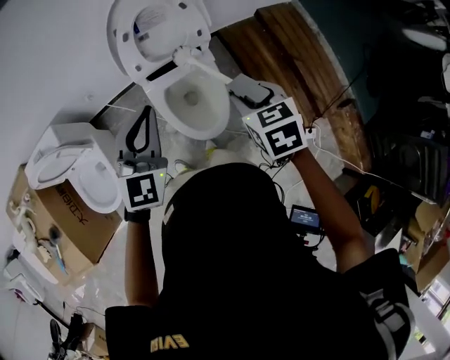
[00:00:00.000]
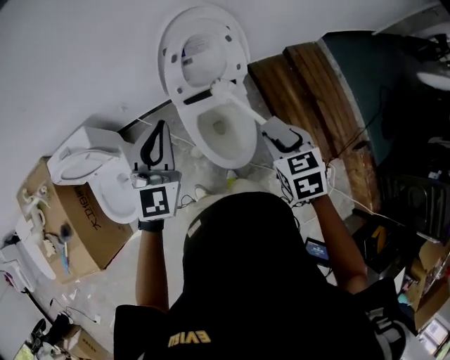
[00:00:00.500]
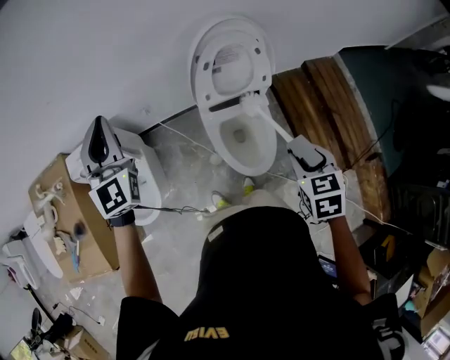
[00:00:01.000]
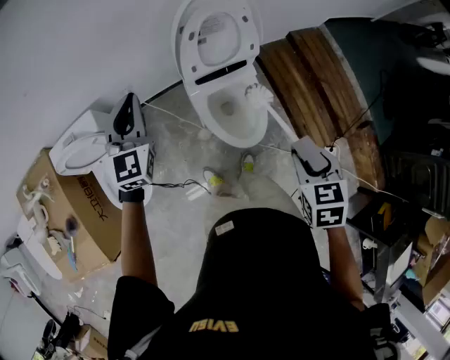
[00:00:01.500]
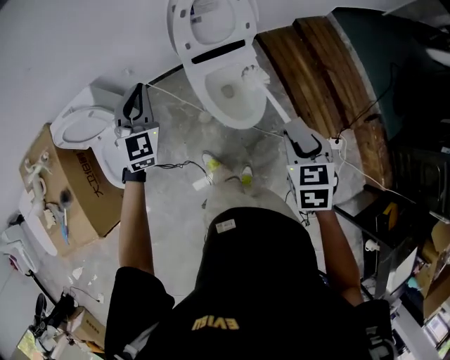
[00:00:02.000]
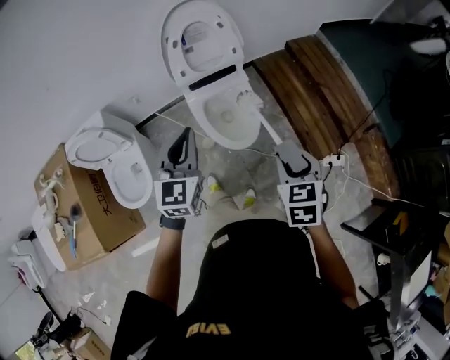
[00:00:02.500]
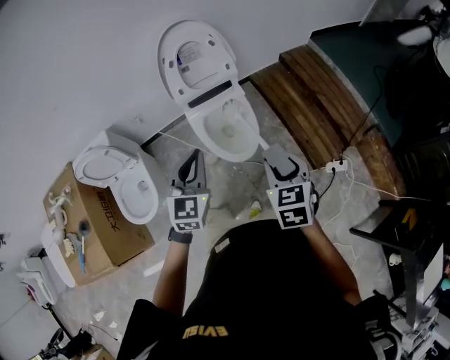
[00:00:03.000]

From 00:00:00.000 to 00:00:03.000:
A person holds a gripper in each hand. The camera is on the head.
From 00:00:00.000 to 00:00:01.500: The right gripper heads backward and to the left, covering approximately 15 cm; the left gripper travels to the left by roughly 25 cm.
From 00:00:01.500 to 00:00:03.000: The left gripper goes about 35 cm to the right and backward; the right gripper shifts some 15 cm backward and to the right.

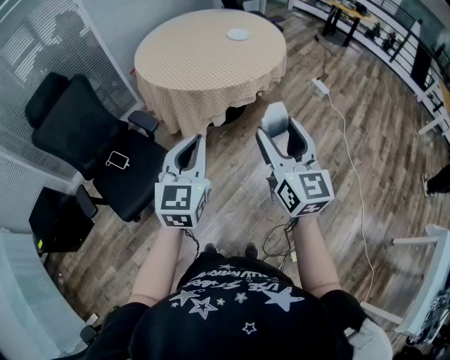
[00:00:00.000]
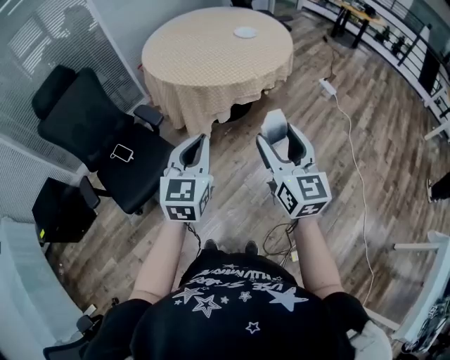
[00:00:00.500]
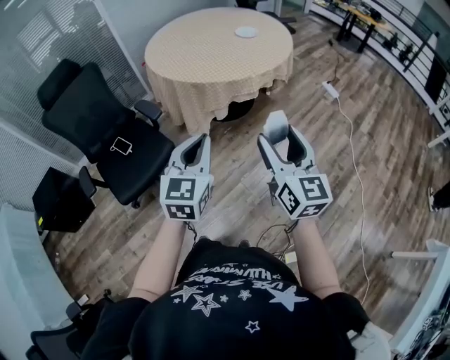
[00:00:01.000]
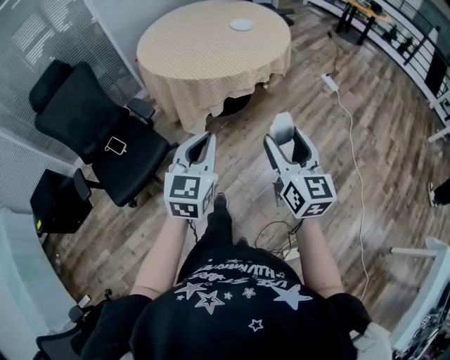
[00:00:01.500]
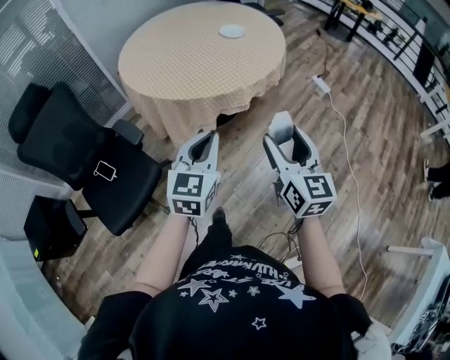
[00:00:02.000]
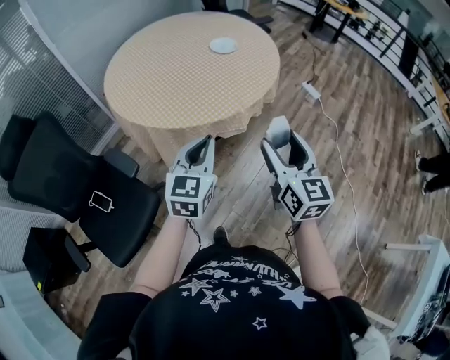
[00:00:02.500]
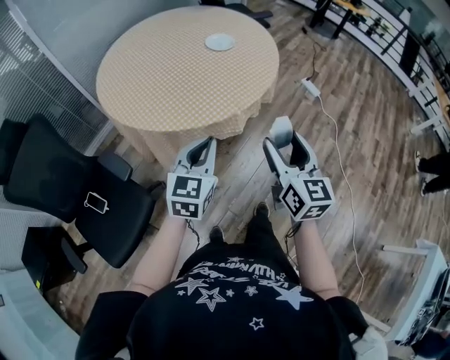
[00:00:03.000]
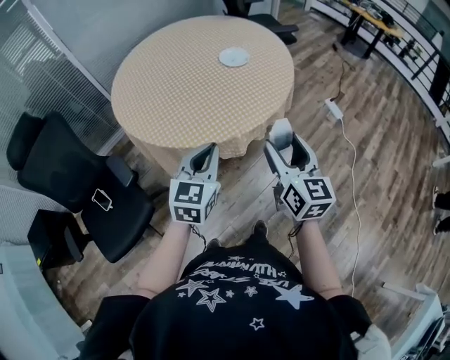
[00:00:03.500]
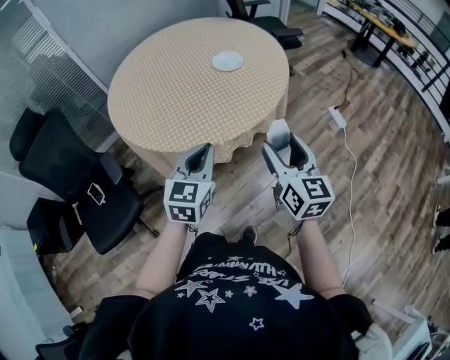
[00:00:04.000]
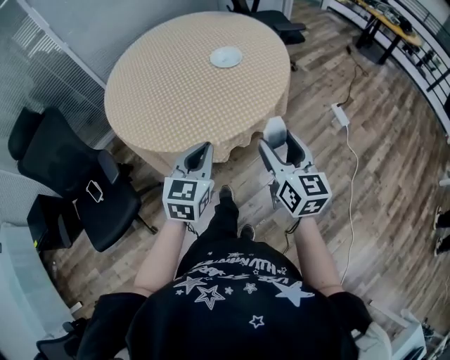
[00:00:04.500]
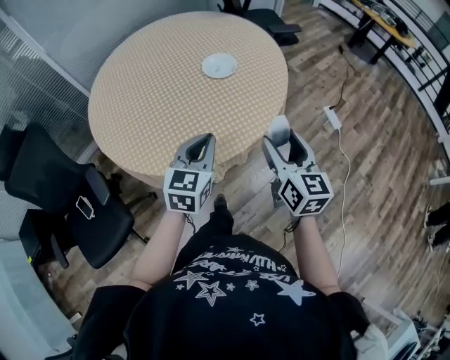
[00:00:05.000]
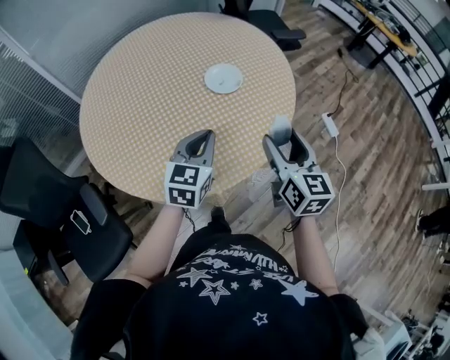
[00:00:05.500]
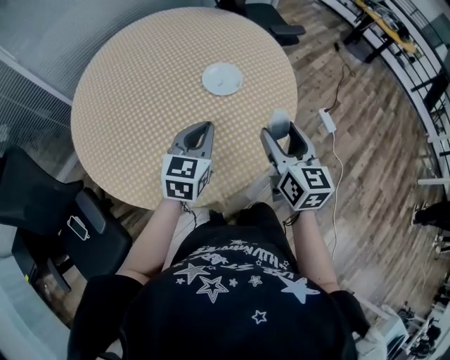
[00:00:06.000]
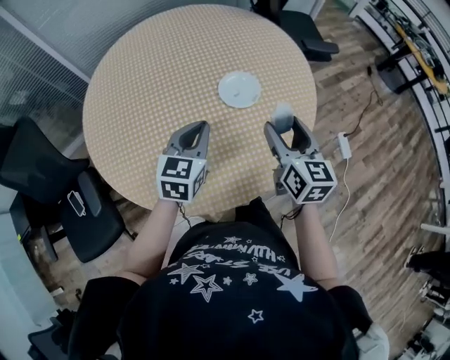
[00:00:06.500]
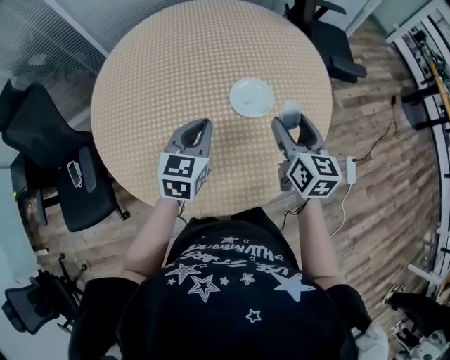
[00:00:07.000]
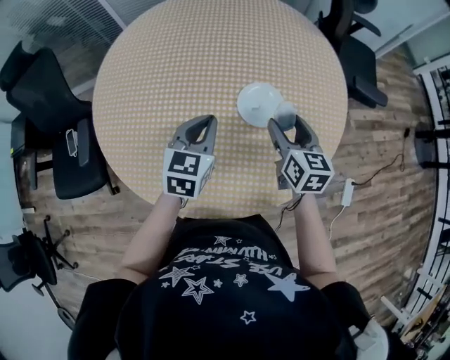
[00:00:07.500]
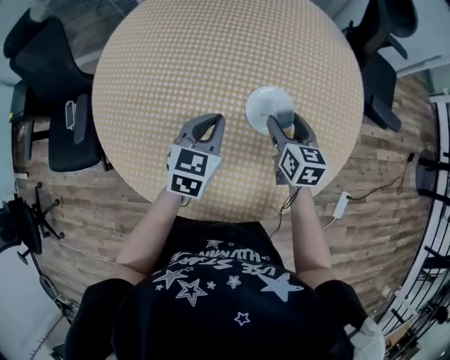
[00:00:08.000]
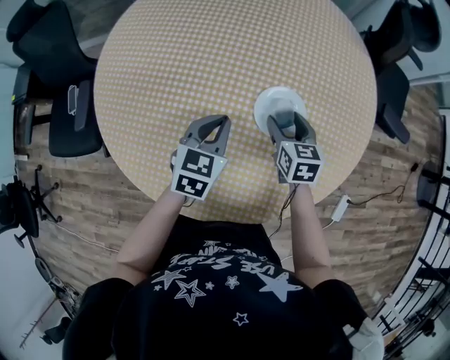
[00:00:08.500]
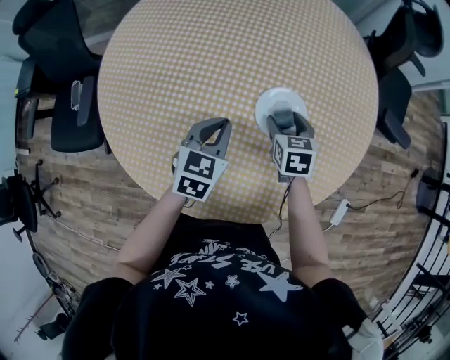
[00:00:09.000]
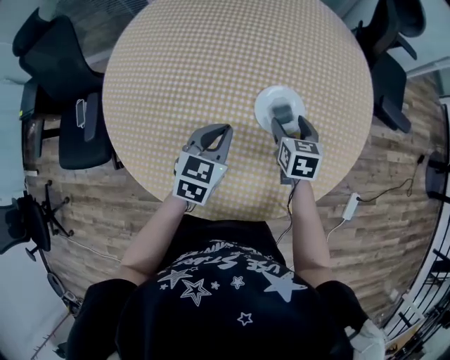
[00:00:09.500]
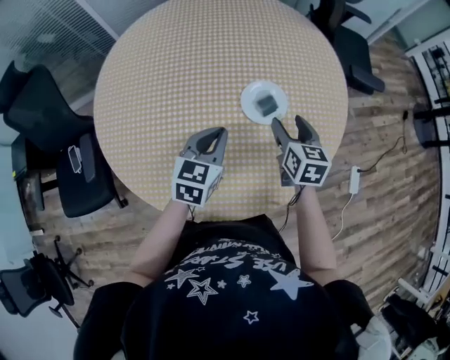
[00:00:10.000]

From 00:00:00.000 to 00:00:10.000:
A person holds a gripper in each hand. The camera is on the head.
From 00:00:00.000 to 00:00:02.000: The left gripper travels forward, to the right and downward by roughly 20 cm; the right gripper travels forward, downward and to the right by about 15 cm.
From 00:00:02.000 to 00:00:04.000: Both grippers move forward and to the right, approximately 30 cm.
From 00:00:04.000 to 00:00:06.000: The grippers both shift forward by approximately 30 cm.
From 00:00:06.000 to 00:00:08.000: The right gripper ends up approximately 30 cm from where it was, and changes its angle by roughly 40 degrees. The left gripper moves roughly 15 cm, and changes its angle by some 40 degrees.
From 00:00:08.000 to 00:00:10.000: The right gripper is displaced backward by approximately 5 cm.

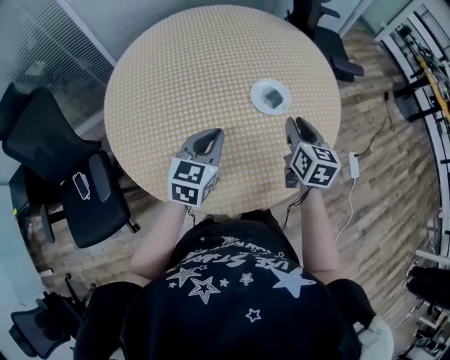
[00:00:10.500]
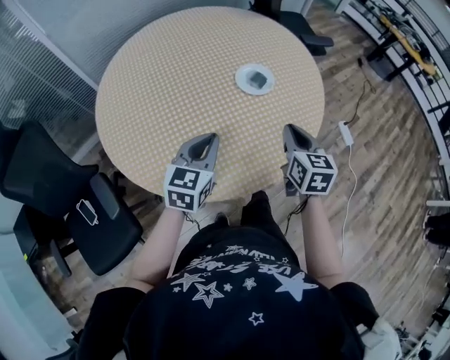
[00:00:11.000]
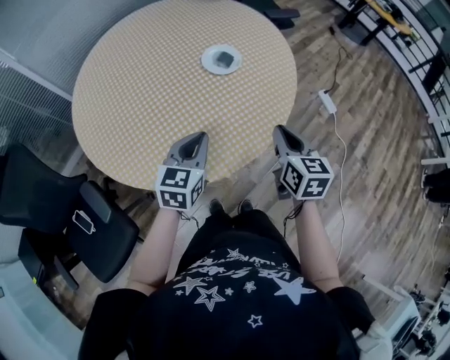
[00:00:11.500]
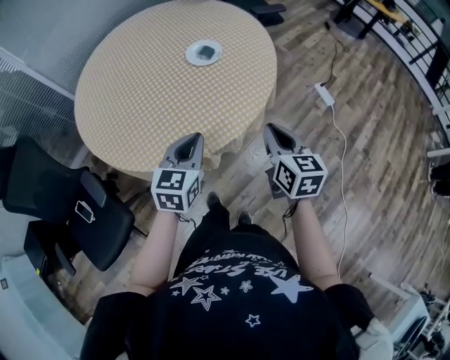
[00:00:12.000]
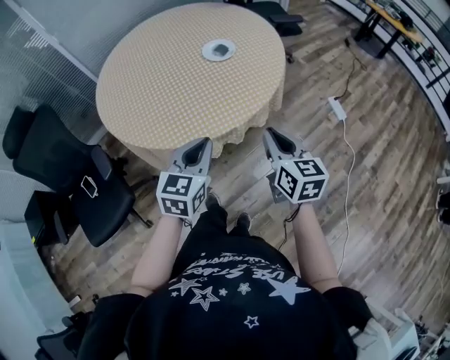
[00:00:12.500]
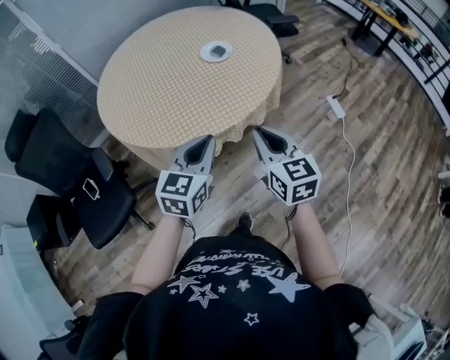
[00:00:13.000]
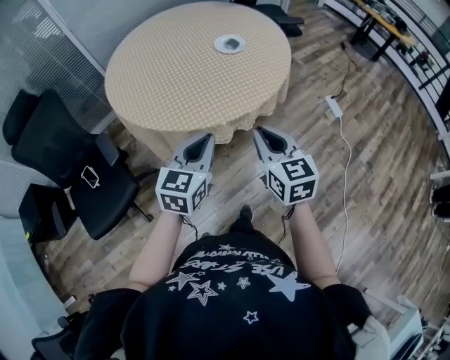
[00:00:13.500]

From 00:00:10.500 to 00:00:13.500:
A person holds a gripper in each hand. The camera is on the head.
From 00:00:10.500 to 00:00:12.000: The left gripper goes roughly 20 cm backward and to the right; the right gripper heads backward, covering some 30 cm.
From 00:00:12.000 to 00:00:13.500: The right gripper travels backward and to the left by roughly 15 cm. The left gripper travels backward by roughly 15 cm.

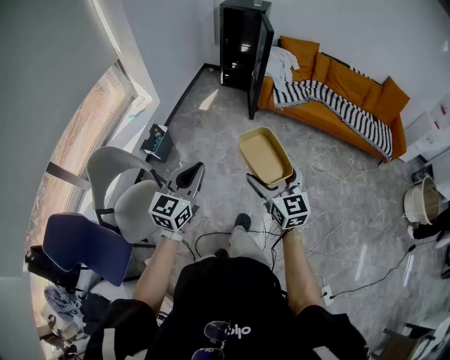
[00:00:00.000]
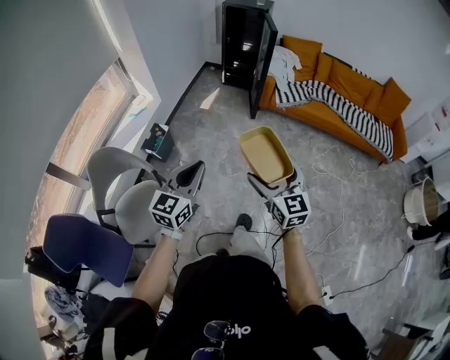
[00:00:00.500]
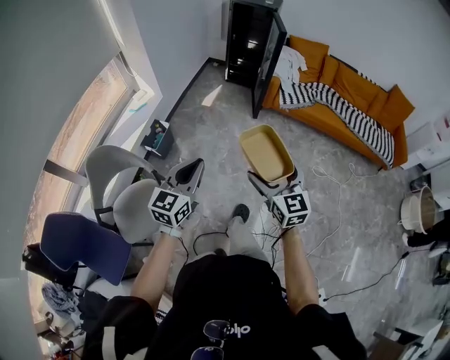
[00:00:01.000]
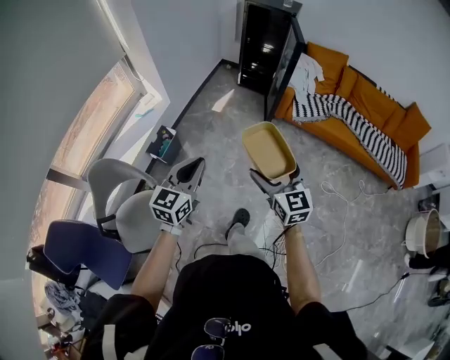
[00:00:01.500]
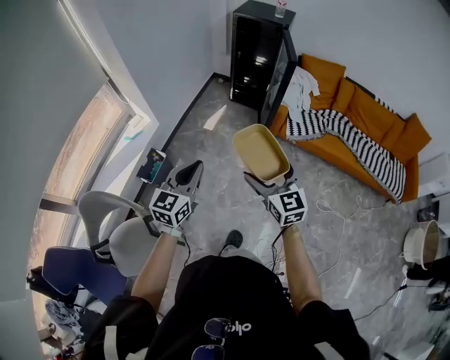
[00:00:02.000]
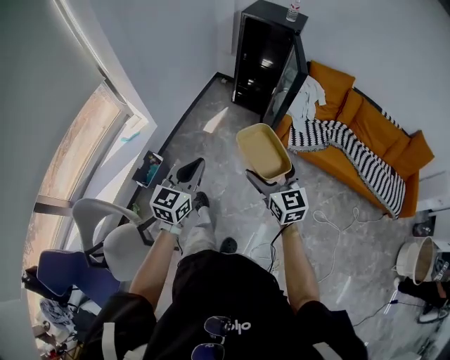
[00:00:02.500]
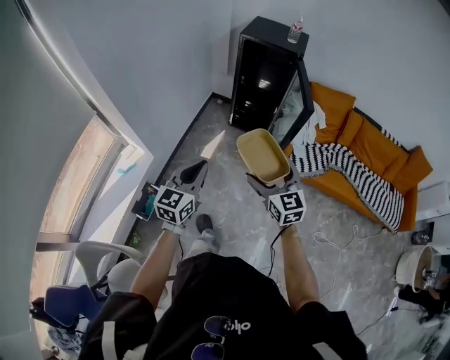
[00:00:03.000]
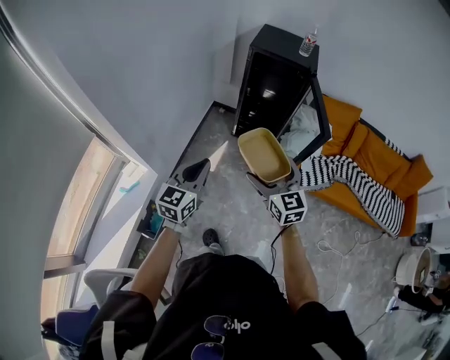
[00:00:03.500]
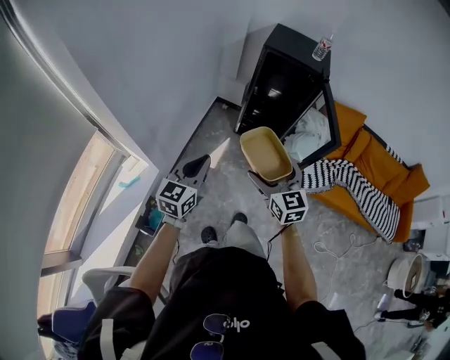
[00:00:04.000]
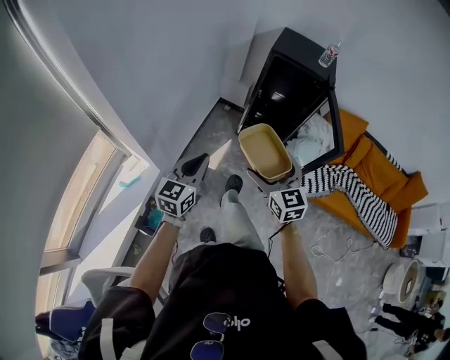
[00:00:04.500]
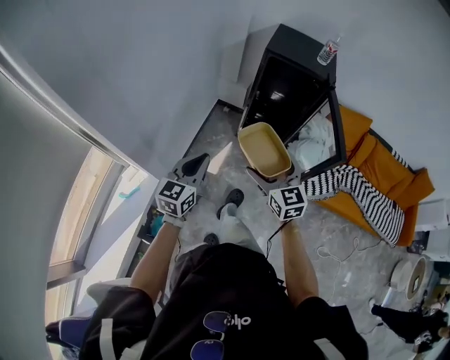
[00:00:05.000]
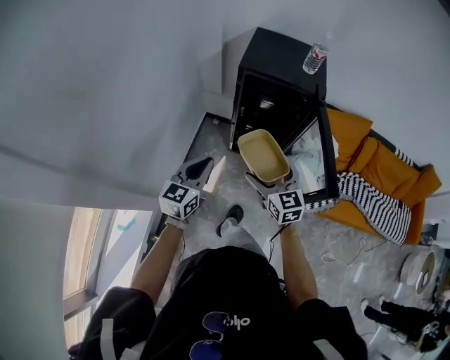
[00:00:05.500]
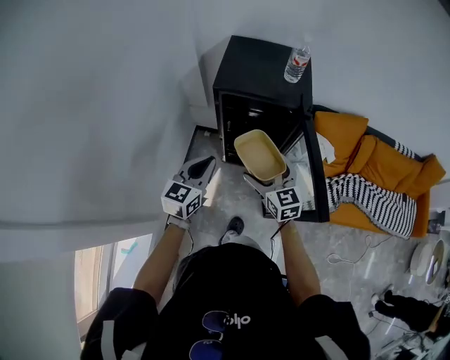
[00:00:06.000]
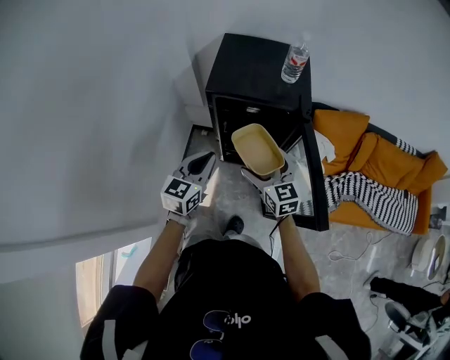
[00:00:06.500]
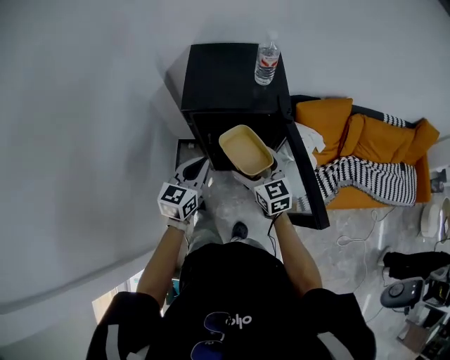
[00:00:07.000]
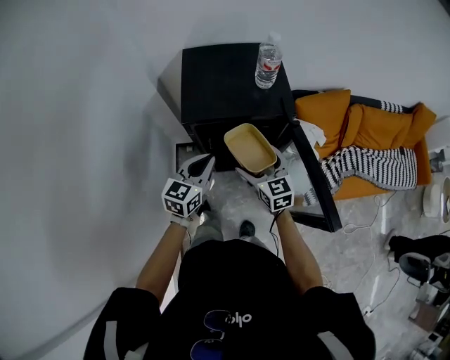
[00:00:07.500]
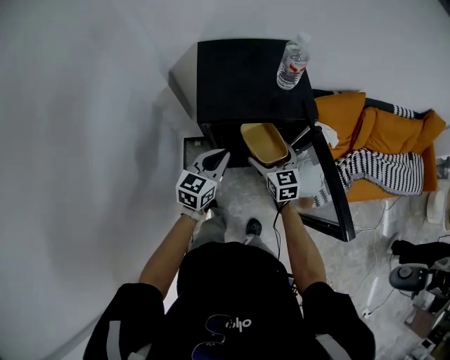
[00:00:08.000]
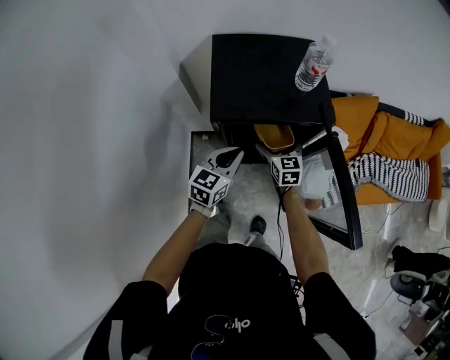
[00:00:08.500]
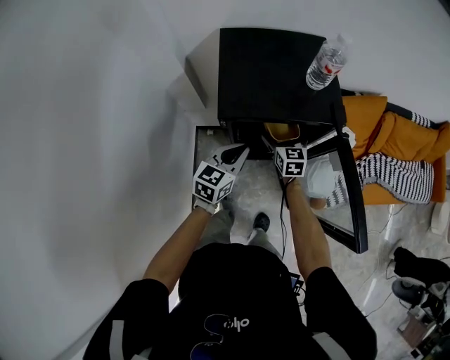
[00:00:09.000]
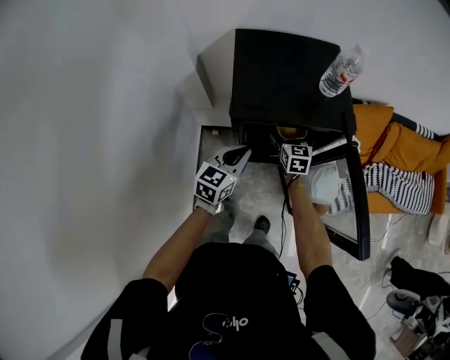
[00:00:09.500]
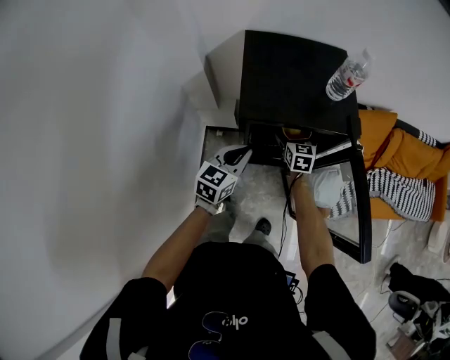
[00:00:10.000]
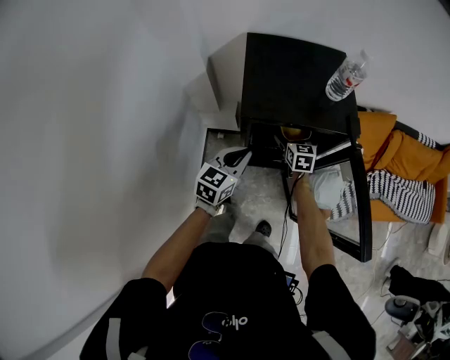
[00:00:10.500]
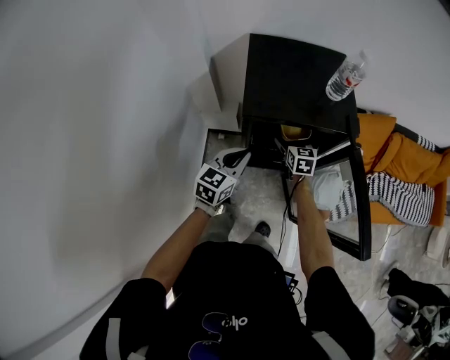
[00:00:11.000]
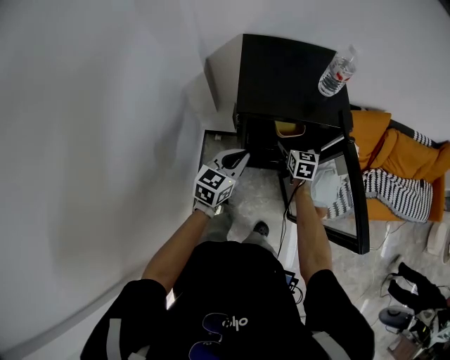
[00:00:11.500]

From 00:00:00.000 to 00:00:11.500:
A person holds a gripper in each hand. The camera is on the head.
From 00:00:00.000 to 00:00:02.000: Both grippers move forward, approximately 35 cm.
From 00:00:02.000 to 00:00:04.000: Both grippers are carried forward, approximately 50 cm.
From 00:00:04.000 to 00:00:06.000: Both grippers travel together forward, about 40 cm.
From 00:00:06.000 to 00:00:07.500: The two grippers go approximately 15 cm forward.
From 00:00:07.500 to 00:00:09.500: The right gripper is displaced forward and downward by some 20 cm, while the left gripper goes approximately 5 cm downward.
From 00:00:09.500 to 00:00:11.500: The right gripper shifts by some 5 cm.
